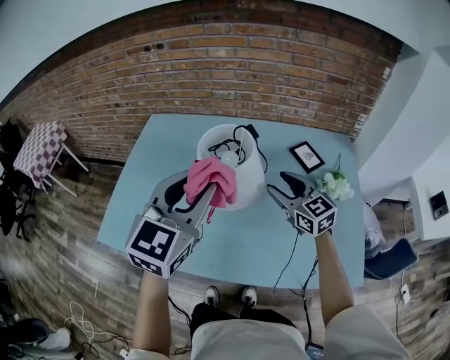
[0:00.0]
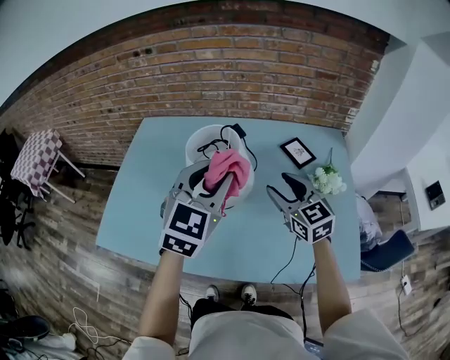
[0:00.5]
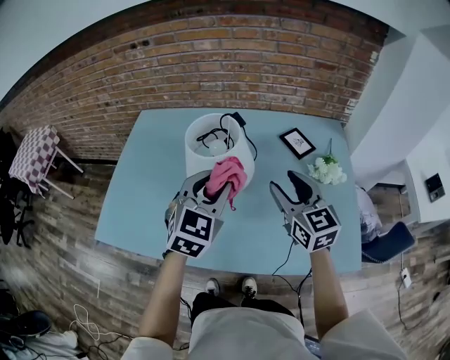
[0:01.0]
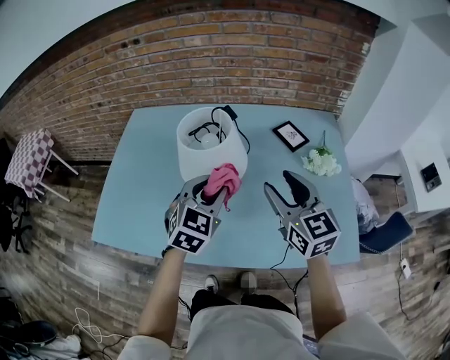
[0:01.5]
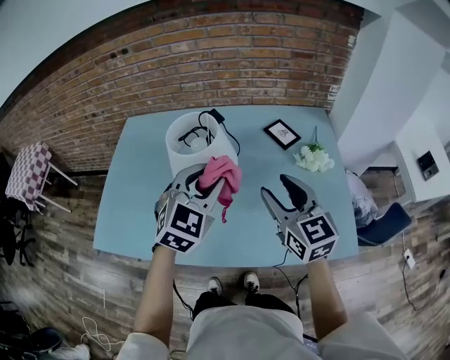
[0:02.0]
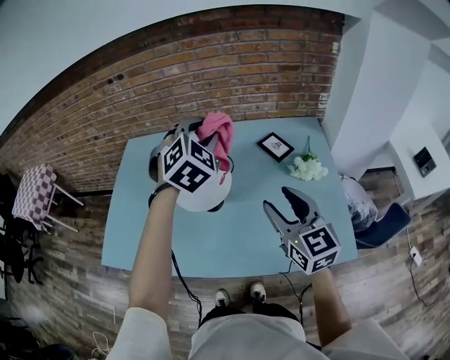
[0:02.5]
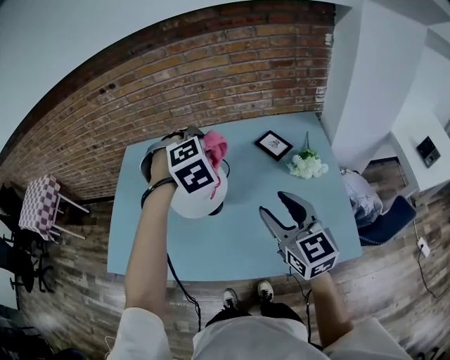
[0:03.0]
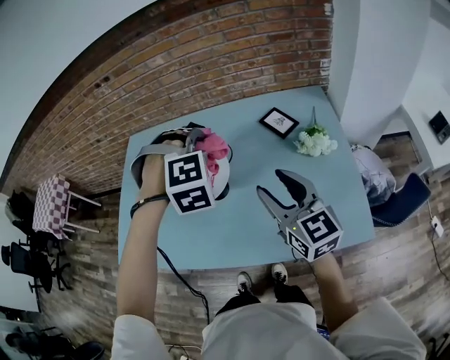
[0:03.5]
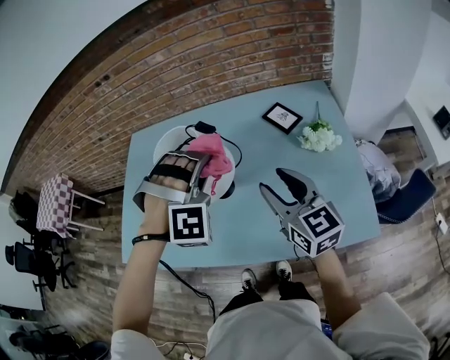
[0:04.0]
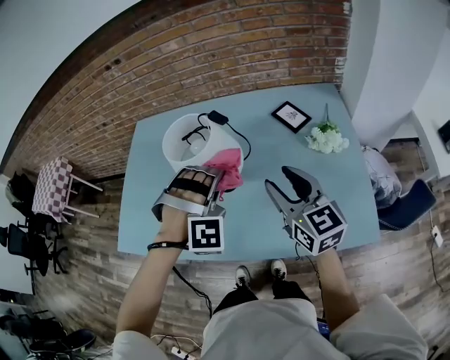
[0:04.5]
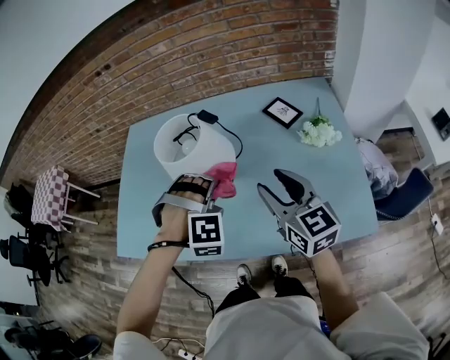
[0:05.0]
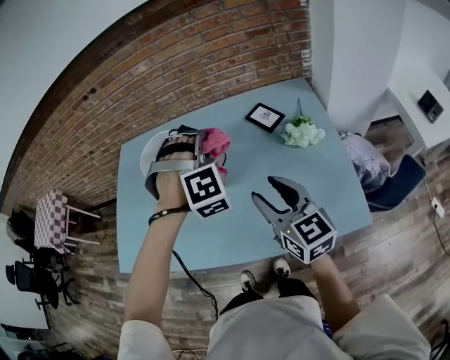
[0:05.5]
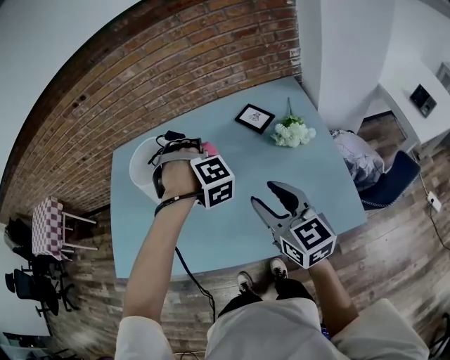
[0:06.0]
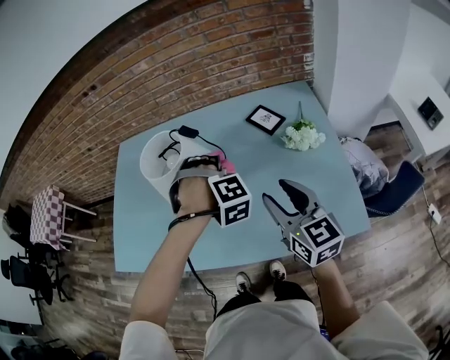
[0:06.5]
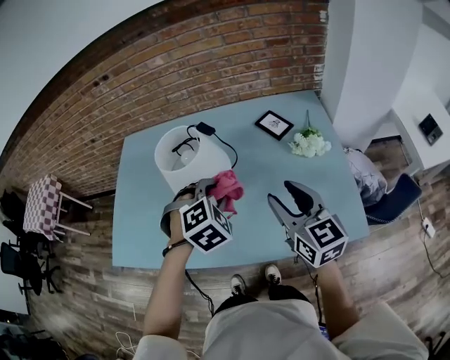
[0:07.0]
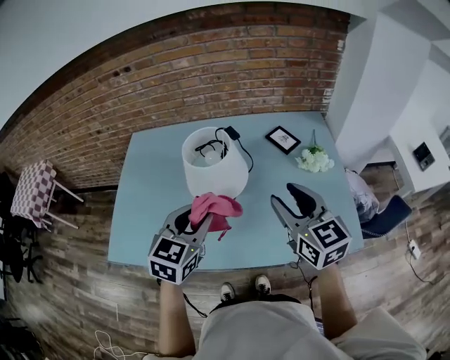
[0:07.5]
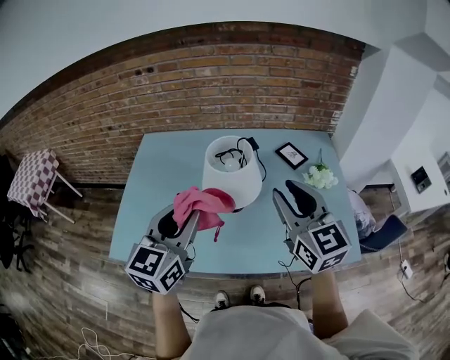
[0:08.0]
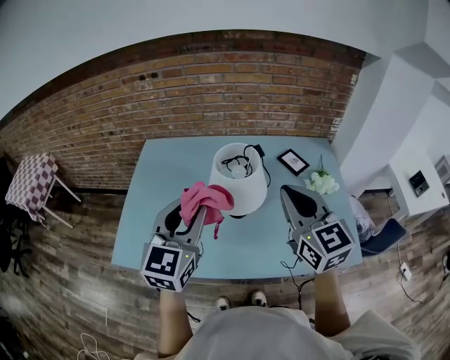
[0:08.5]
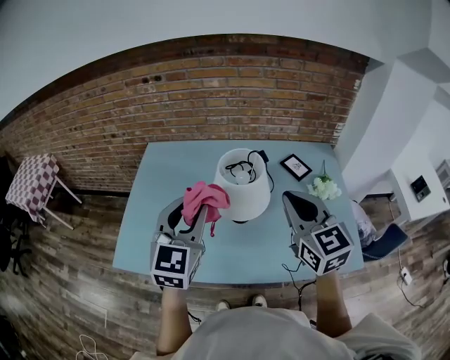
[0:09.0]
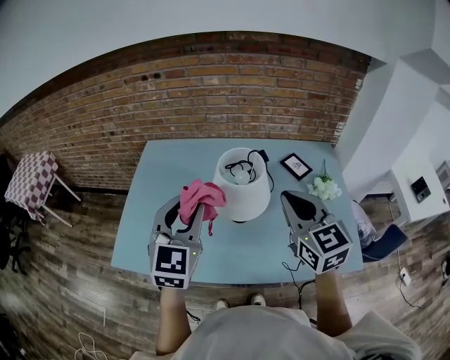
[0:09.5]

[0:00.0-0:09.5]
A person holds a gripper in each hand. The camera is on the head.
0:00.0 to 0:02.0: The right gripper moves backward, upward and to the right, roughly 15 cm; the left gripper moves to the right and downward, some 10 cm, and changes its angle by approximately 20 degrees.
0:02.0 to 0:04.0: The left gripper travels forward and back again, about 10 cm each way, and twists approximately 70 degrees clockwise, seen from behind.
0:04.0 to 0:05.5: The left gripper moves to the right, about 5 cm, and goes downward and returns, about 10 cm each way.
0:05.5 to 0:07.5: The right gripper travels upward by roughly 5 cm; the left gripper goes downward and returns, some 10 cm each way, and twists roughly 80 degrees counterclockwise, seen from behind.
0:07.5 to 0:09.5: The right gripper moves to the left and upward, approximately 10 cm, and closes up. The left gripper is displaced upward and to the left by about 15 cm, and swivels approximately 20 degrees.

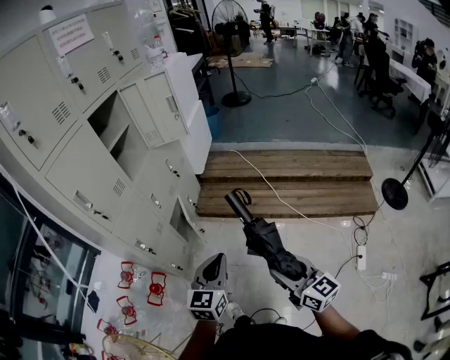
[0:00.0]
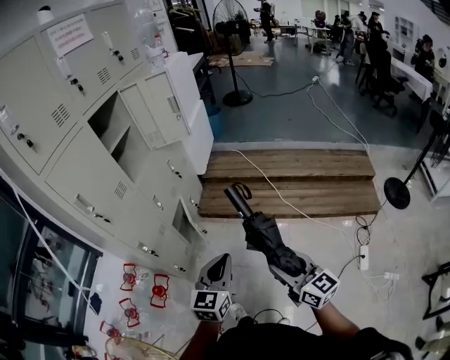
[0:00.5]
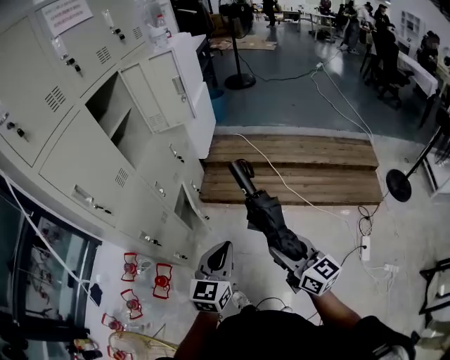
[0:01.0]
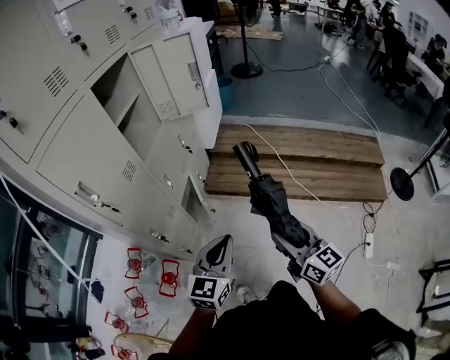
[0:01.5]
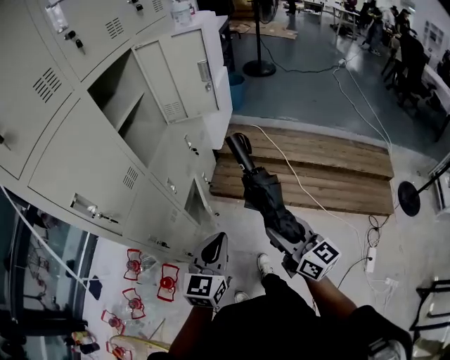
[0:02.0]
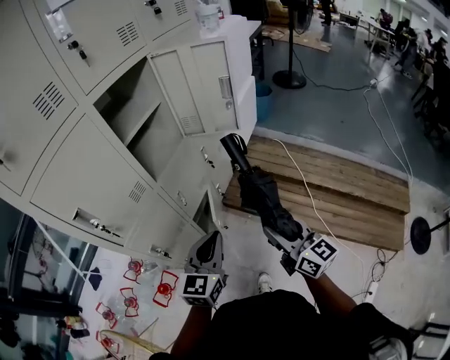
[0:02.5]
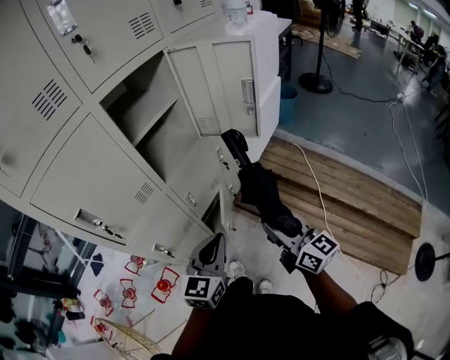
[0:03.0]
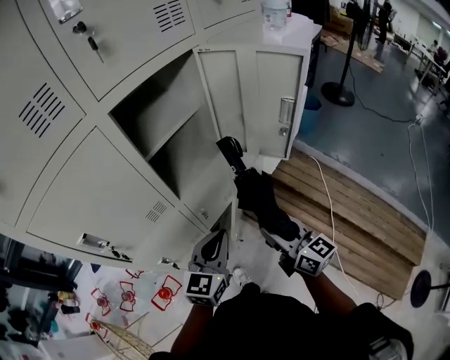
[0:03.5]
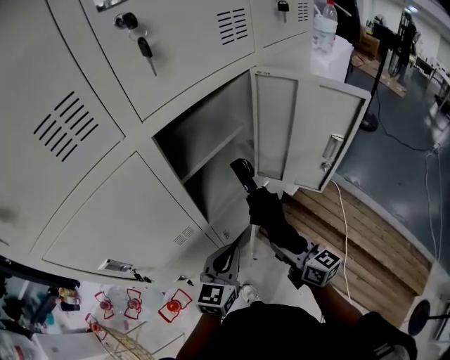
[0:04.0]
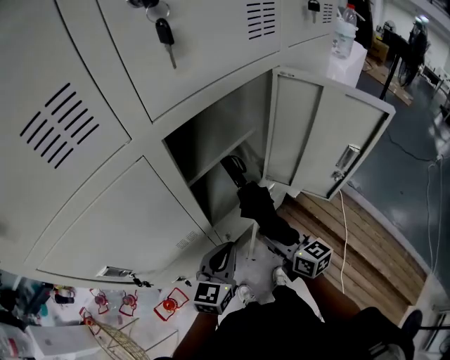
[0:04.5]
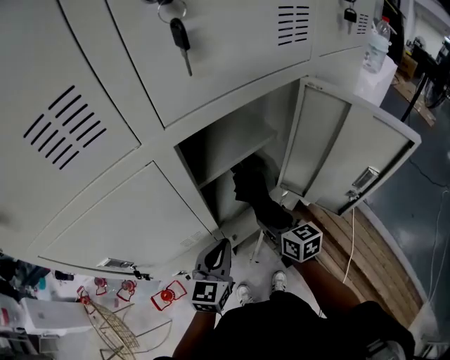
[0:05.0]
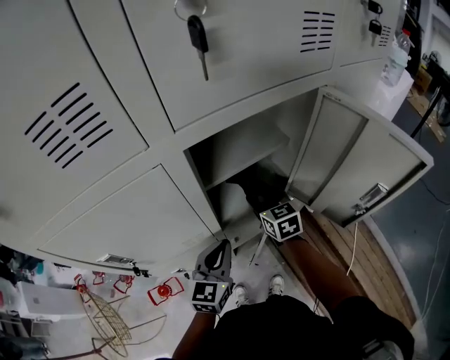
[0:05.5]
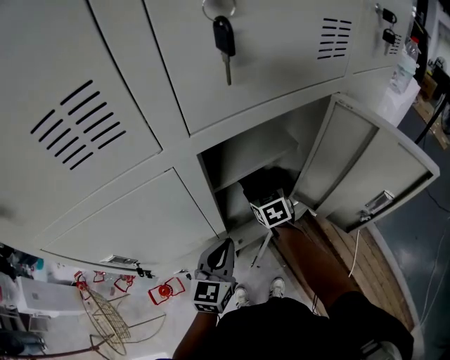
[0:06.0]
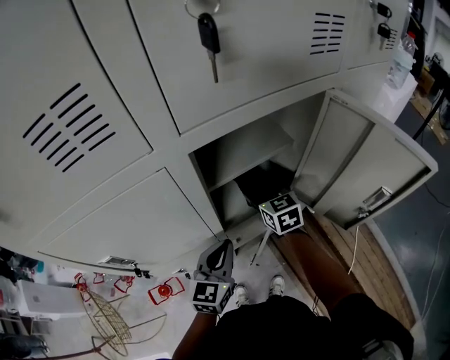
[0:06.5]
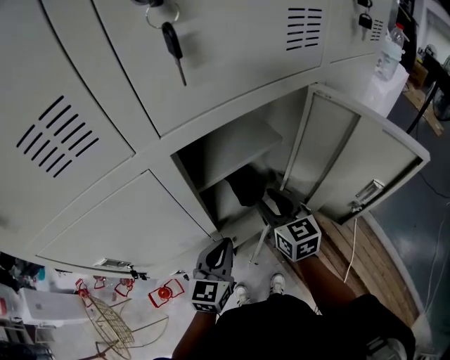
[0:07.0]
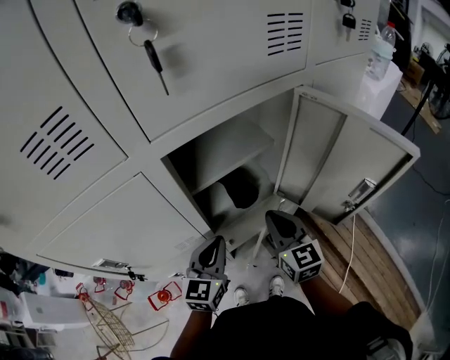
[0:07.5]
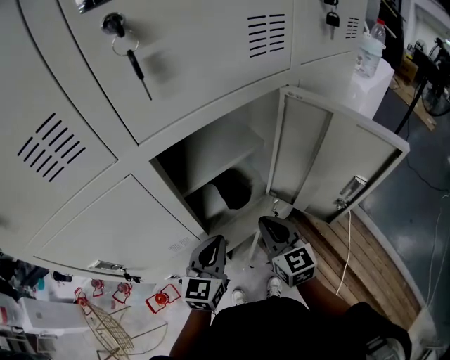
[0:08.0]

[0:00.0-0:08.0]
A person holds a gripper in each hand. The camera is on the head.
0:00.0 to 0:02.0: The two grippers go roughly 25 cm forward and to the left.
0:02.0 to 0:04.0: The left gripper shifts by approximately 30 cm, and turns by approximately 30 degrees; the right gripper changes place by about 40 cm, and rotates approximately 30 degrees.
0:04.0 to 0:06.0: The right gripper heads forward, covering some 30 cm, and swivels some 40 degrees. Meanwhile the left gripper travels forward and to the left by roughly 10 cm.
0:06.0 to 0:08.0: The right gripper goes approximately 20 cm backward, upward and to the right, rotates about 20 degrees, and closes.

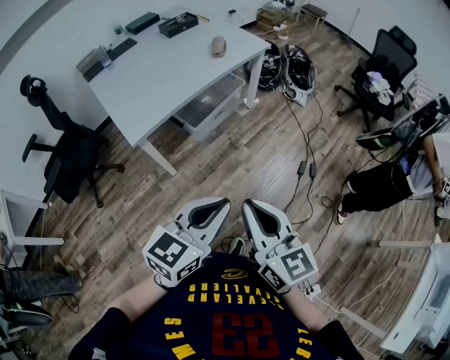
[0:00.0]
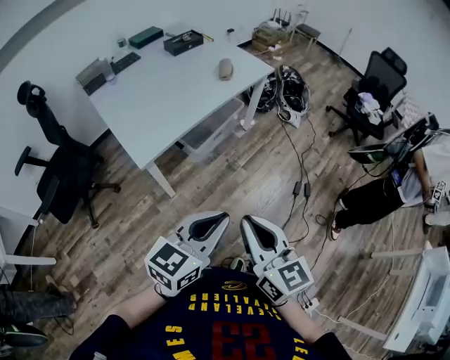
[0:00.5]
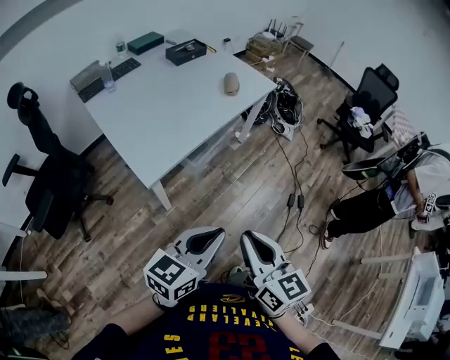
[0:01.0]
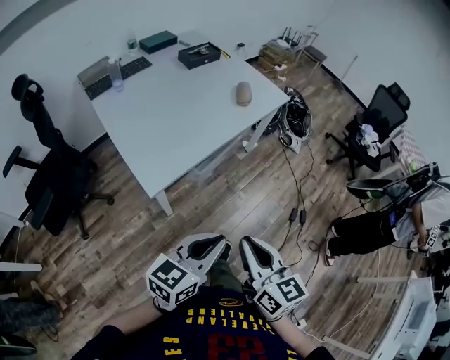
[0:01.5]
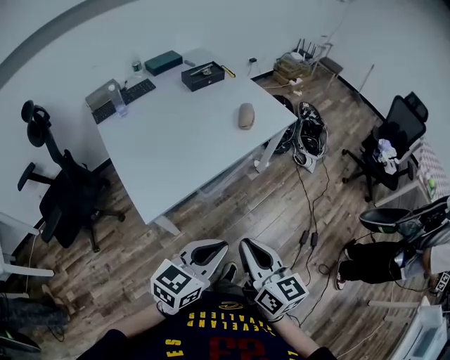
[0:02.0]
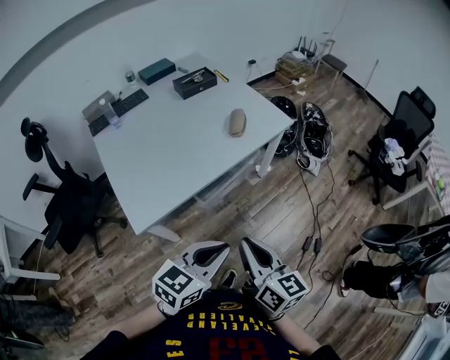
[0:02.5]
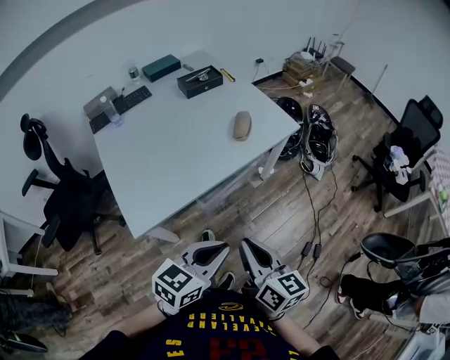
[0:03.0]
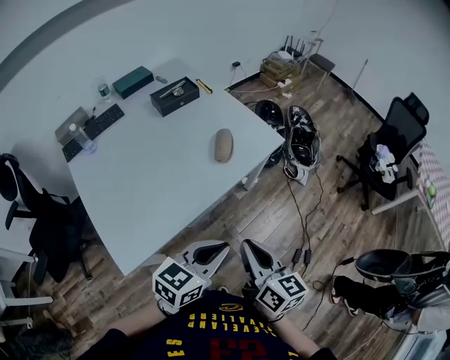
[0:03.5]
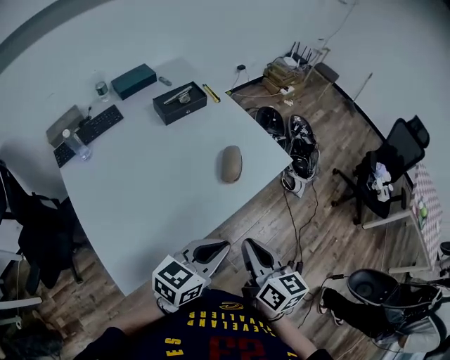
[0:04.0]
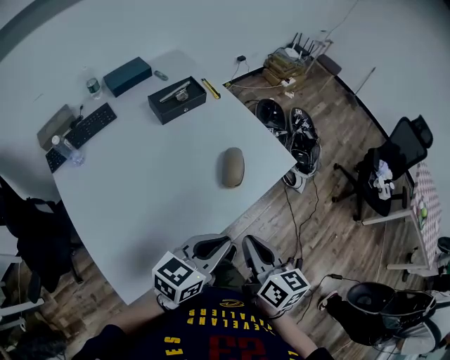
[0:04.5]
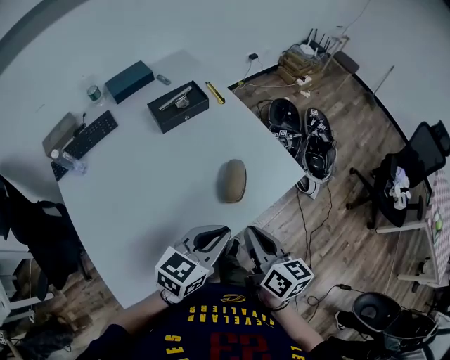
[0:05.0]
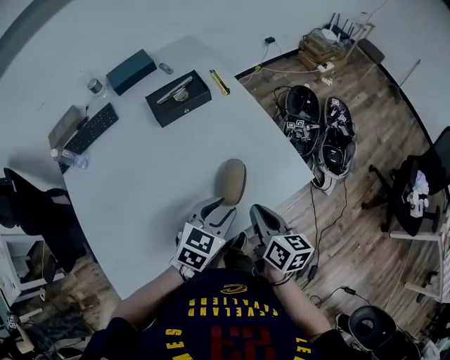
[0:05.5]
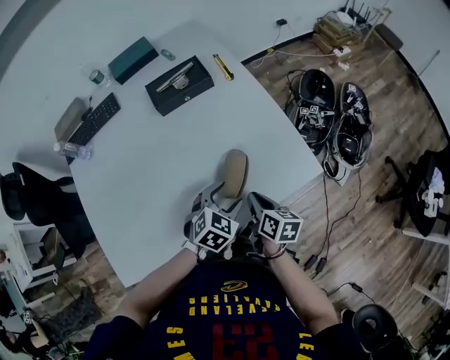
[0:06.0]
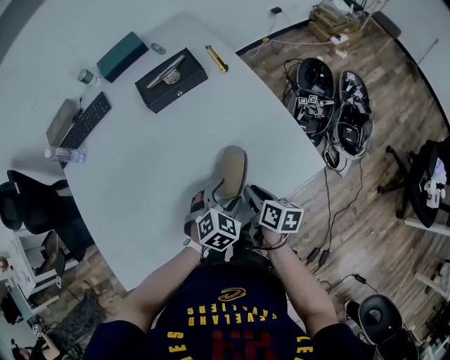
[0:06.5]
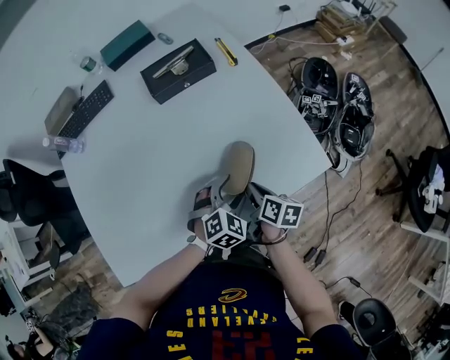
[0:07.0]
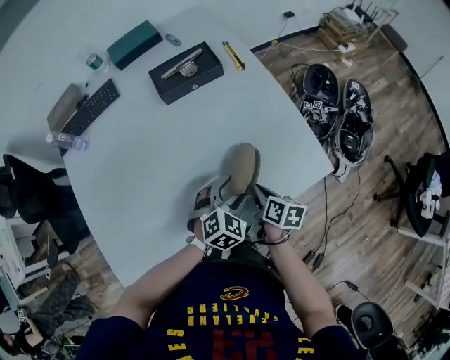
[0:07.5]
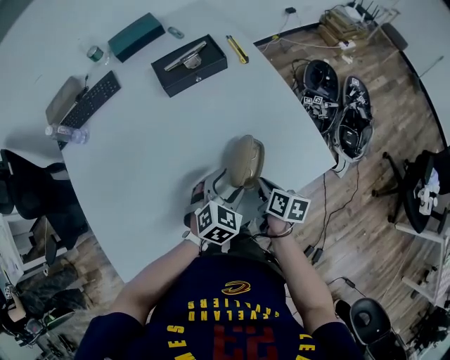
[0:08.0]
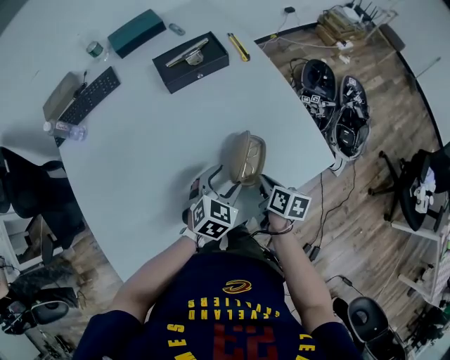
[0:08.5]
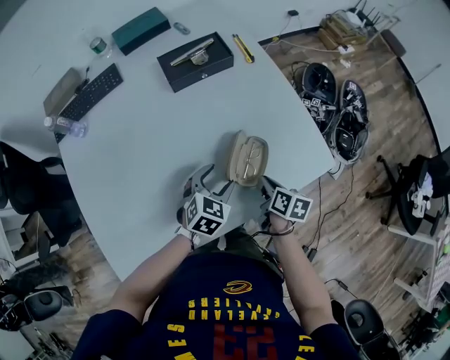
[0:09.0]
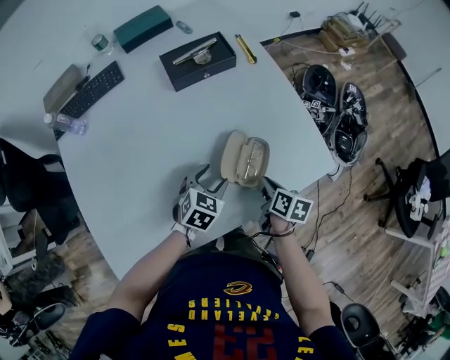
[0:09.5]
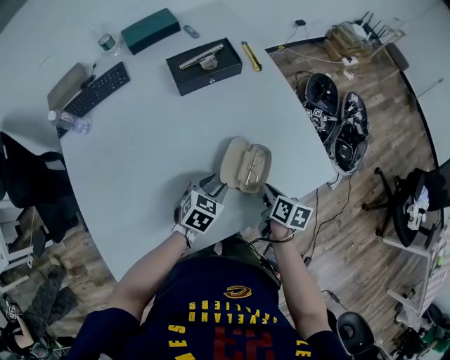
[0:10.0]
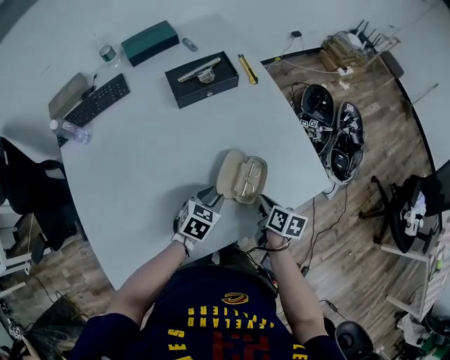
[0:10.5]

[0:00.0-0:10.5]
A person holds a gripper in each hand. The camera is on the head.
0:00.0 to 0:02.0: The grippers both shift forward and to the left by some 25 cm.
0:02.0 to 0:04.0: The grippers both shift forward by roughly 35 cm.
0:04.0 to 0:06.5: The right gripper ends up about 40 cm from where it was, and swivels about 30 degrees, while the left gripper changes place by roughly 40 cm, angles its fingers downward, by about 40 degrees, and opens up.
0:06.5 to 0:08.5: The left gripper shifts roughly 5 cm to the left.
0:08.5 to 0:10.5: The left gripper moves roughly 5 cm, and closes.
